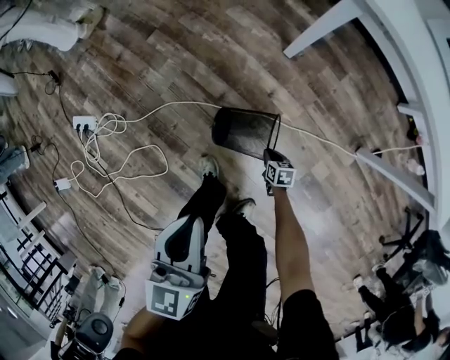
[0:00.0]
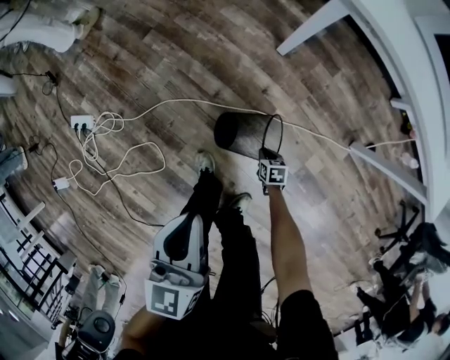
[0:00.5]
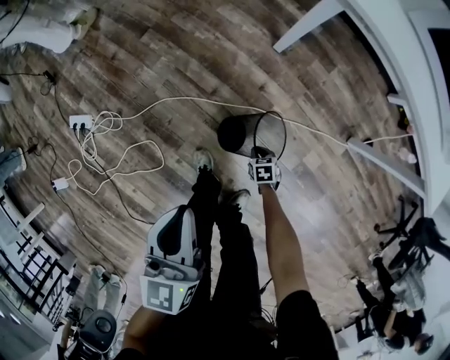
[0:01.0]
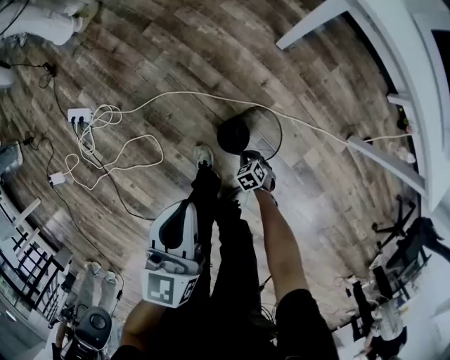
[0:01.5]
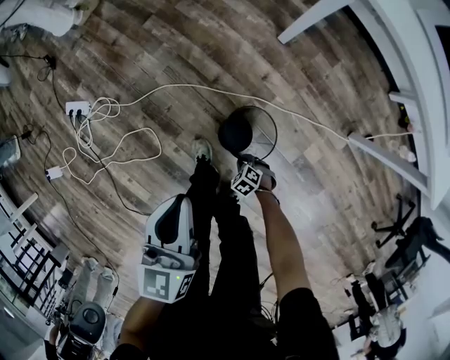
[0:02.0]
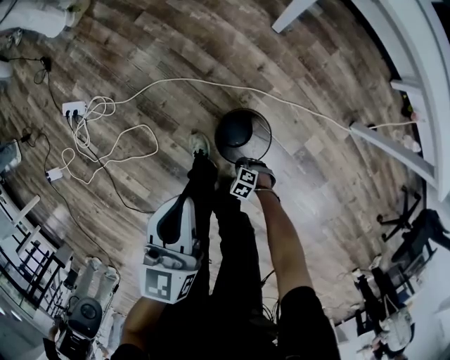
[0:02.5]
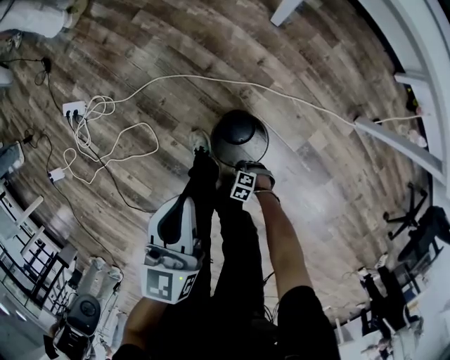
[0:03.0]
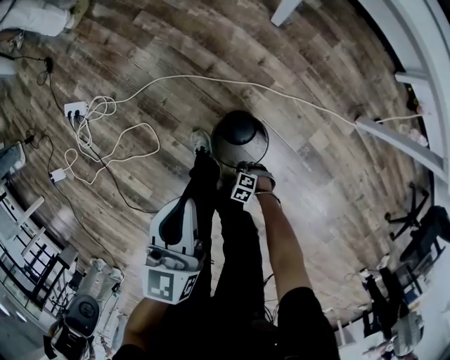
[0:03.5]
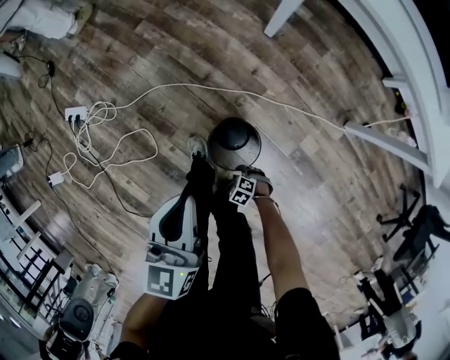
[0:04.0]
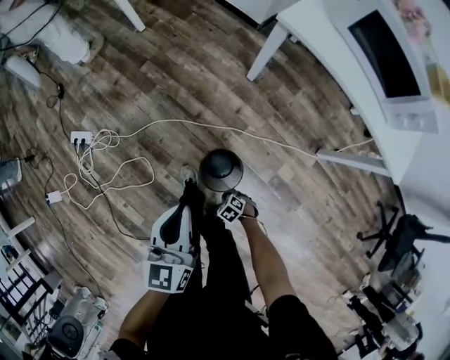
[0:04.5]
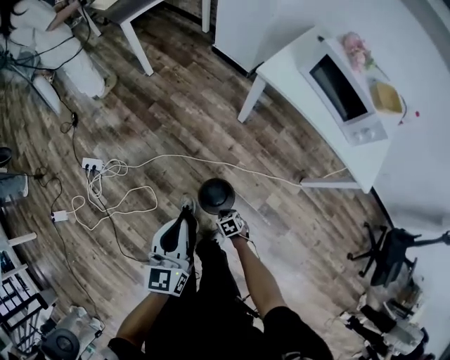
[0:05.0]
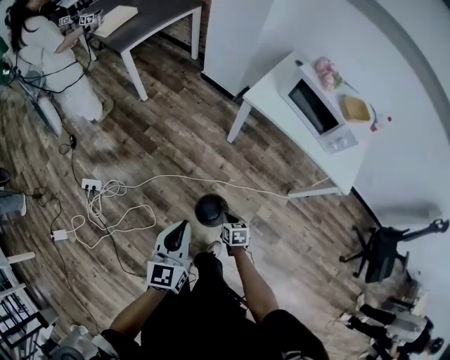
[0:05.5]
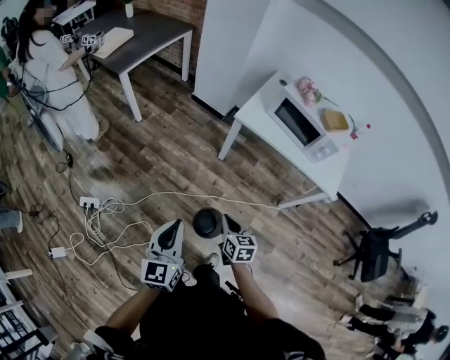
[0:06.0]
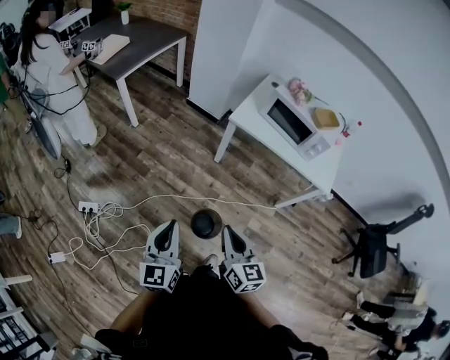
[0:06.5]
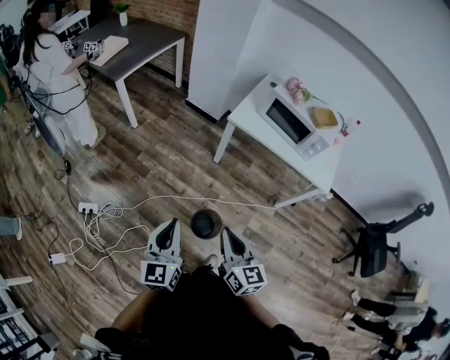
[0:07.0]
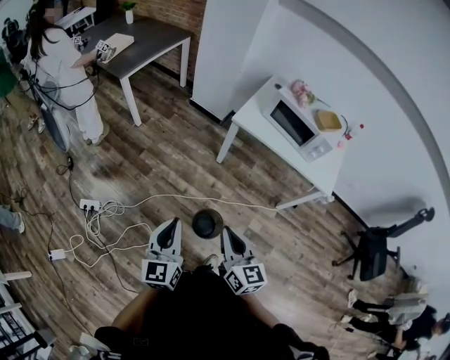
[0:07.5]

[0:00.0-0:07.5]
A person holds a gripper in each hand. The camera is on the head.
0:00.0 to 0:02.0: The right gripper moves some 15 cm, and rolls counterclockwise, seen from behind, by some 60 degrees.
0:02.0 to 0:04.0: The left gripper changes place by some 5 cm, while the right gripper shifts by some 10 cm.
0:04.0 to 0:05.5: The left gripper goes roughly 25 cm upward. The right gripper travels upward by approximately 40 cm, rotates around the line of its fingers by about 60 degrees, clockwise from behind, and closes up.
0:05.5 to 0:07.5: The left gripper is displaced upward and to the left by approximately 10 cm; the right gripper goes some 40 cm upward, and angles its fingers upward, by approximately 40 degrees.

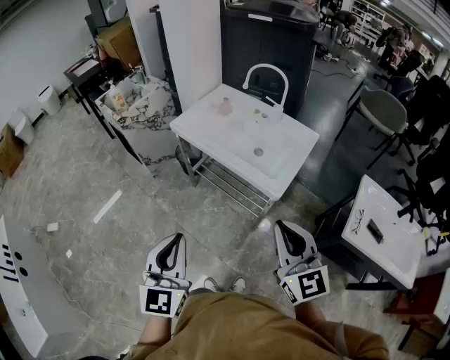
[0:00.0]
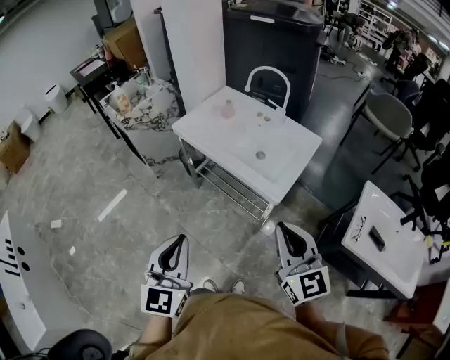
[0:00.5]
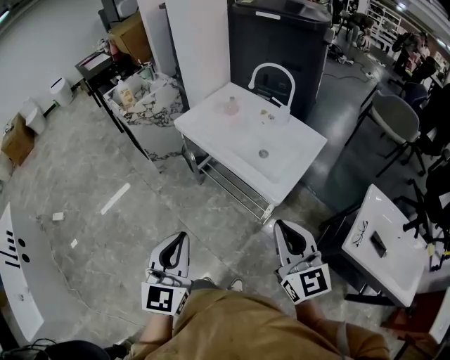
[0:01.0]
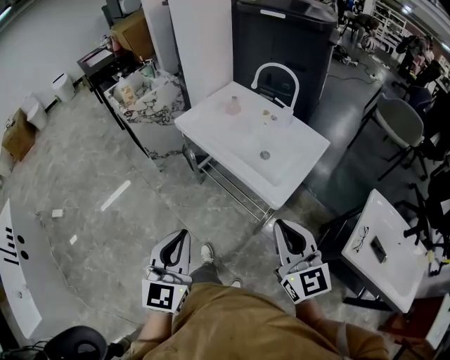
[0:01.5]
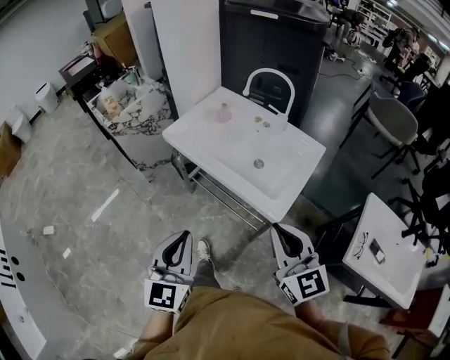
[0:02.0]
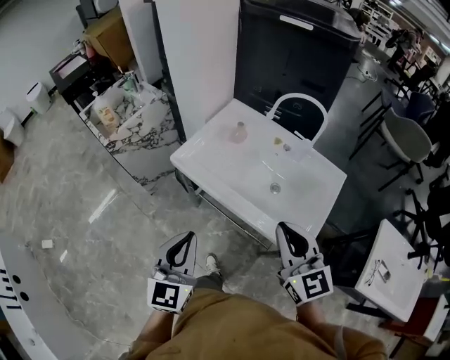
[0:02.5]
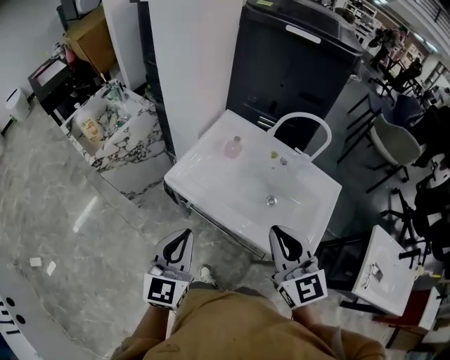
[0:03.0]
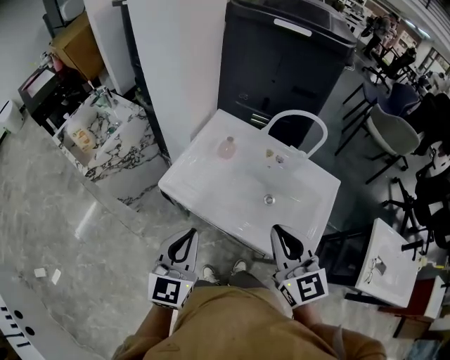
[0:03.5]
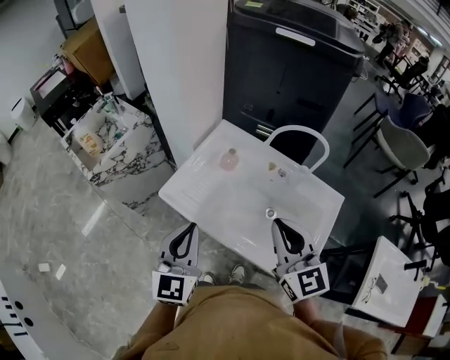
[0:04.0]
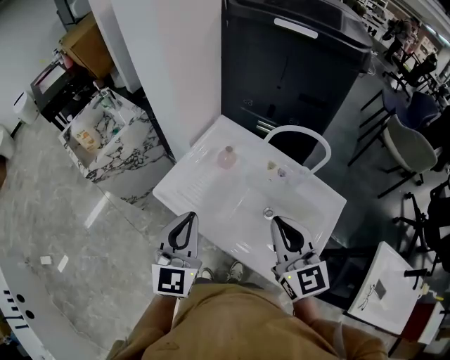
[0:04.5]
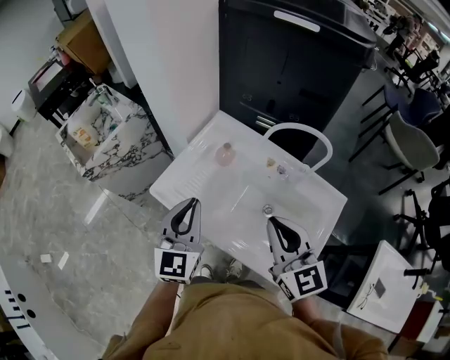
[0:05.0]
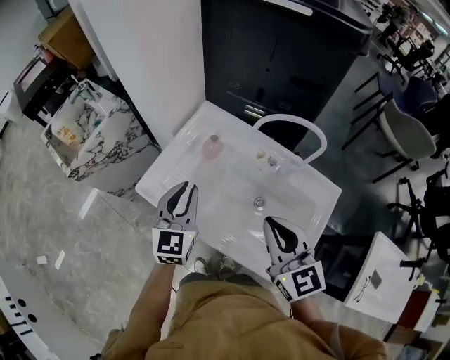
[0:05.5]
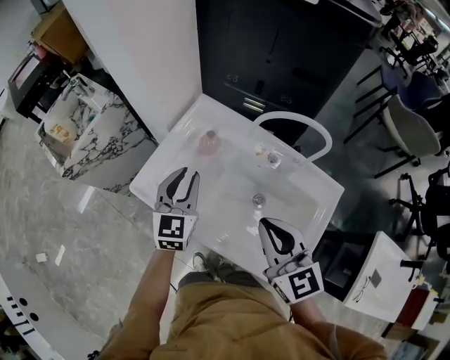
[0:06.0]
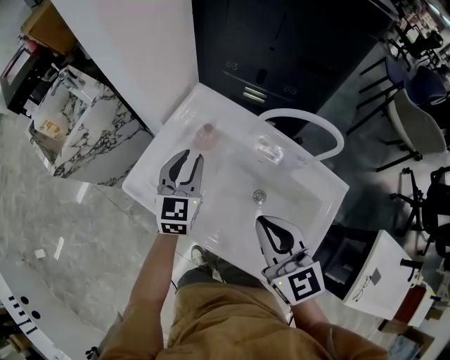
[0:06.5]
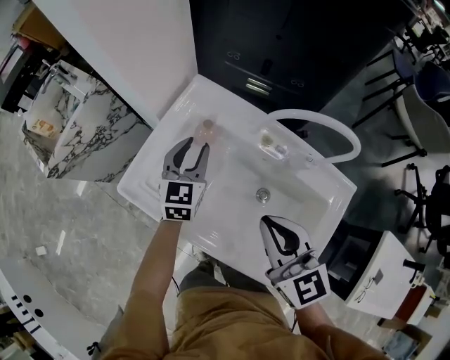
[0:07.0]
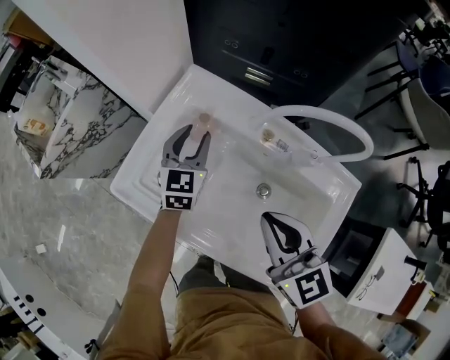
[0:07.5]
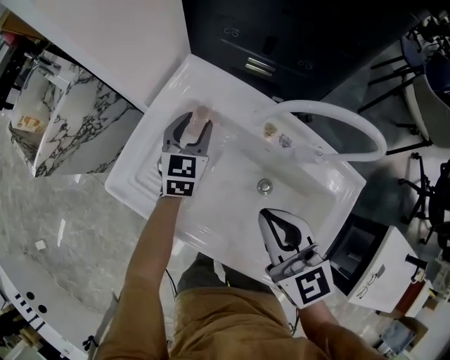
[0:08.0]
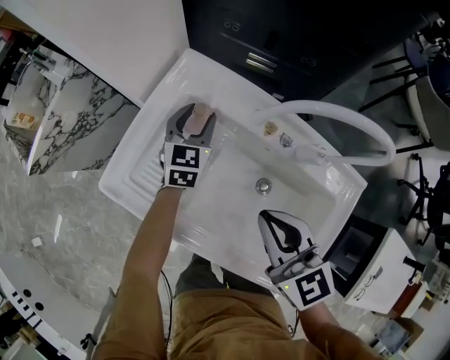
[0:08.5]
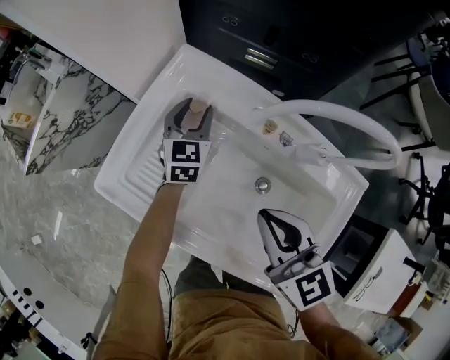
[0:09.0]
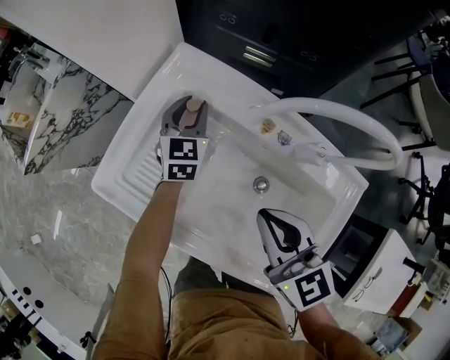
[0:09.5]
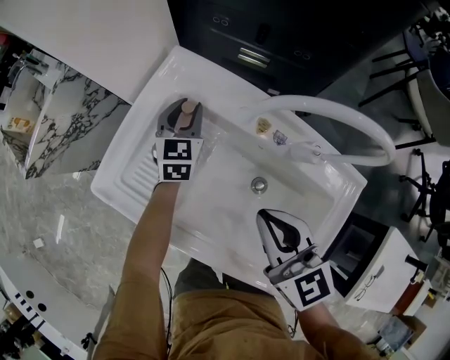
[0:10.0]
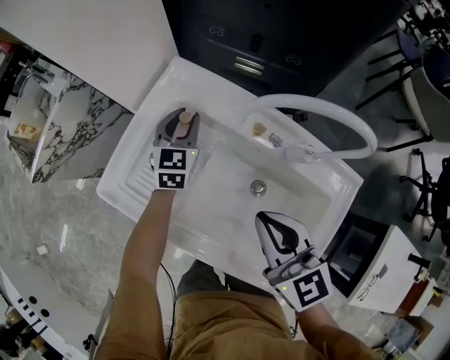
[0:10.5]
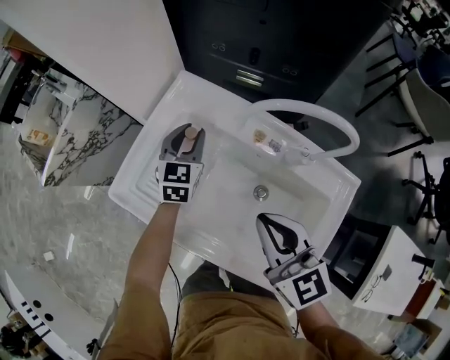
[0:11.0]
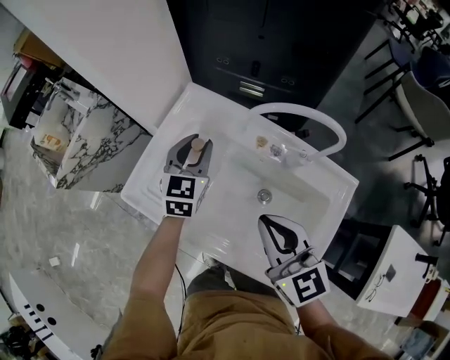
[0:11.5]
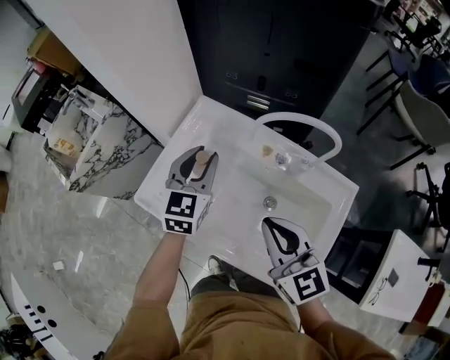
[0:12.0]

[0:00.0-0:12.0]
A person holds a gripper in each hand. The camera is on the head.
0:00.0 to 0:02.0: Both grippers travel together forward, about 10 cm.
0:02.0 to 0:04.0: Both grippers move forward, about 35 cm.
0:04.0 to 0:06.0: The left gripper heads forward, downward and to the right, covering approximately 25 cm, and opens its fingers; the right gripper moves downward and forward, approximately 10 cm.
0:06.0 to 0:08.0: The left gripper travels forward and downward by approximately 20 cm, and opens up. Meanwhile the right gripper is displaced downward and forward by roughly 10 cm.
0:08.0 to 0:10.0: The left gripper shifts by some 5 cm.
0:10.0 to 0:12.0: The right gripper moves upward, approximately 10 cm. The left gripper is displaced upward and backward by some 20 cm.

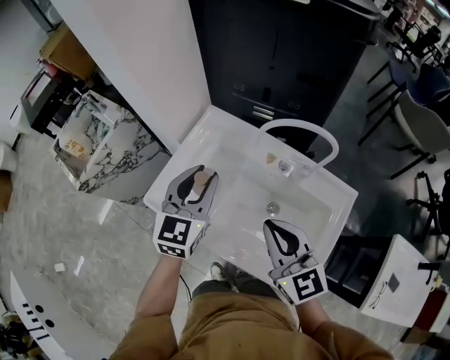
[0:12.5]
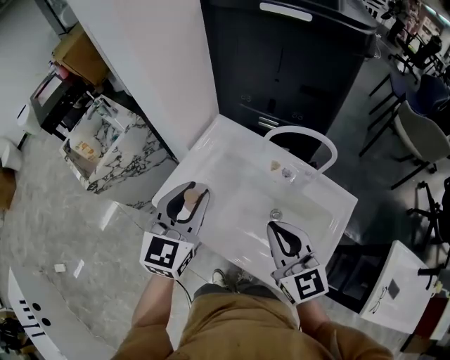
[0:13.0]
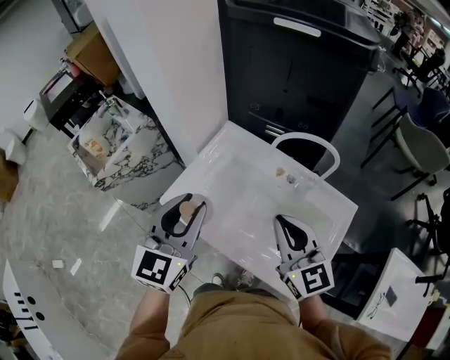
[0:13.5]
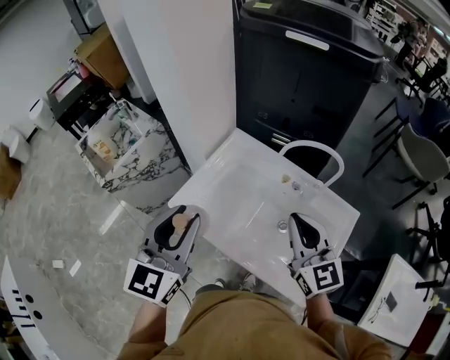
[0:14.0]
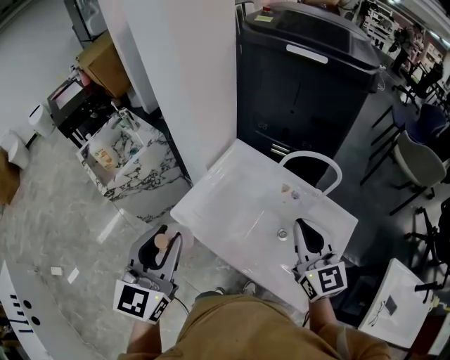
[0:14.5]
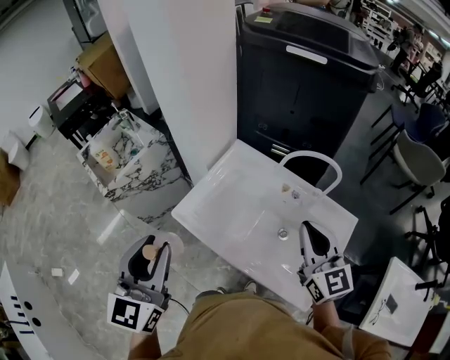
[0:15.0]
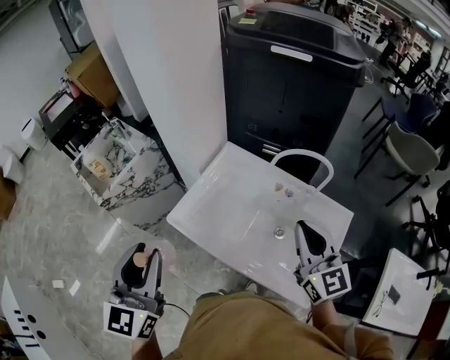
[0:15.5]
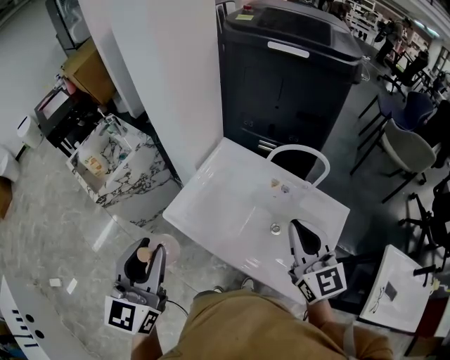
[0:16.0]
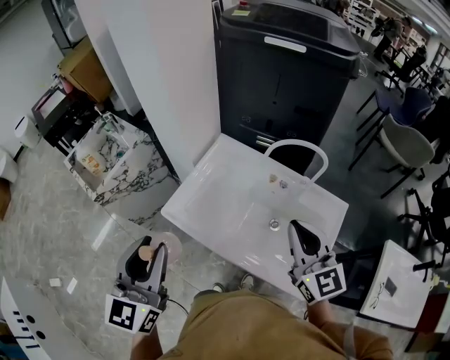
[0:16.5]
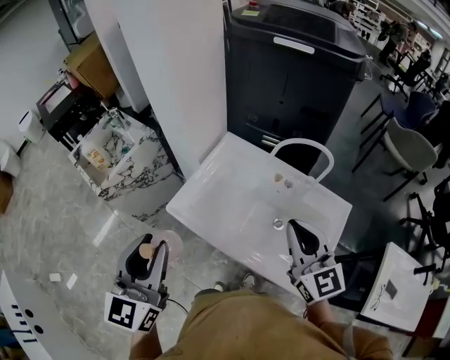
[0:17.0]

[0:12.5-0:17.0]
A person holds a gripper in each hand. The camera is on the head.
0:12.5 to 0:14.5: The left gripper is displaced backward, to the left and upward by approximately 25 cm; the right gripper heads upward, covering approximately 5 cm.
0:14.5 to 0:17.0: The right gripper changes place by approximately 5 cm.

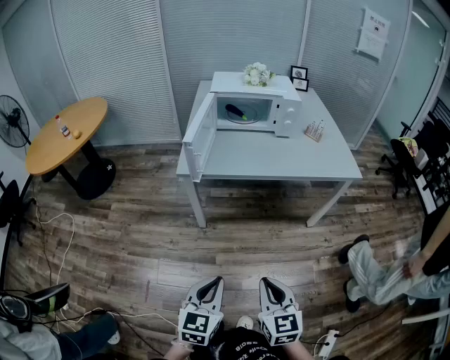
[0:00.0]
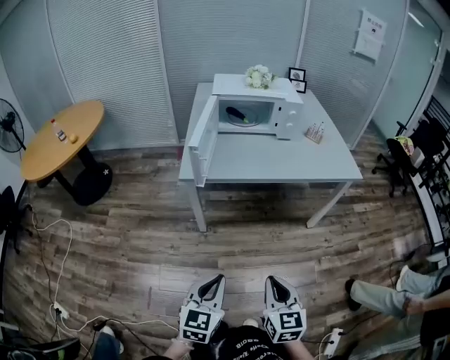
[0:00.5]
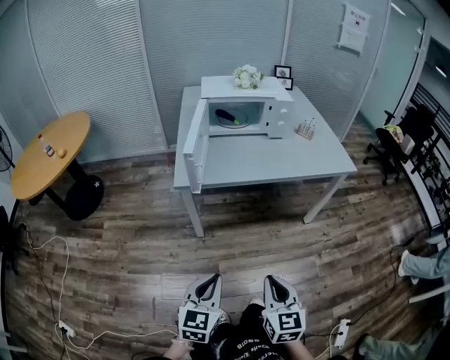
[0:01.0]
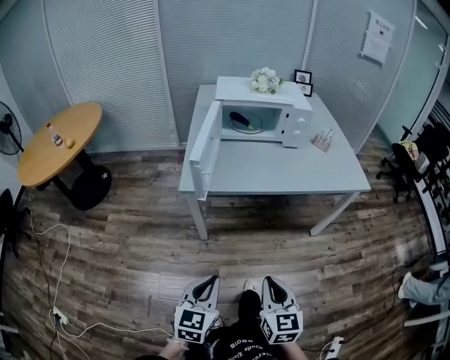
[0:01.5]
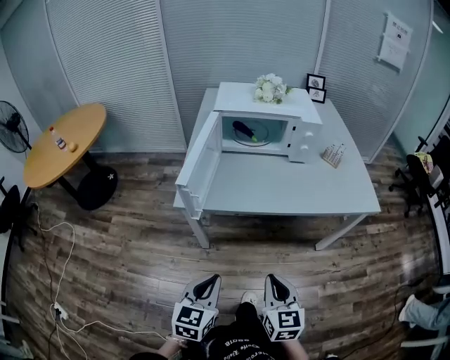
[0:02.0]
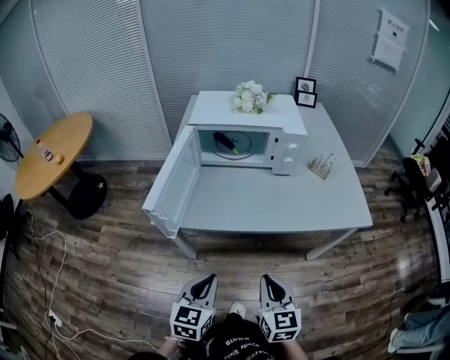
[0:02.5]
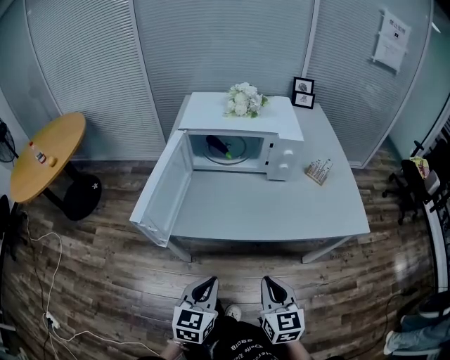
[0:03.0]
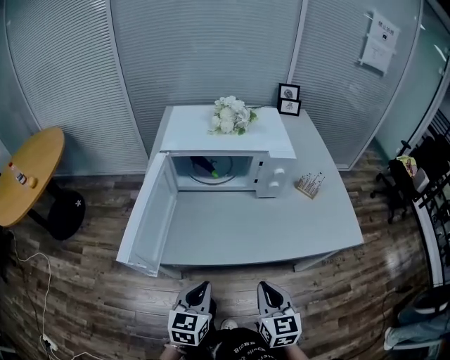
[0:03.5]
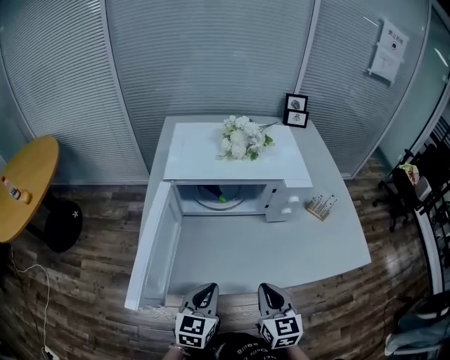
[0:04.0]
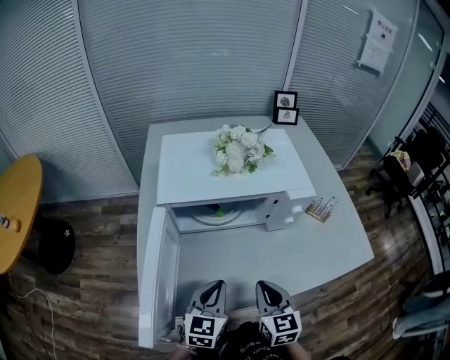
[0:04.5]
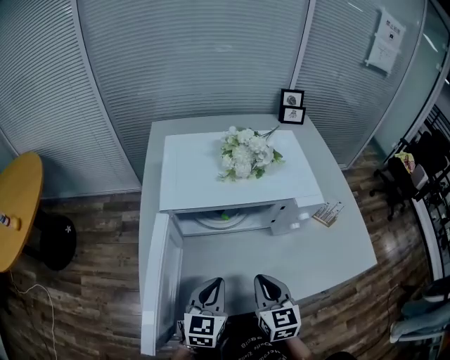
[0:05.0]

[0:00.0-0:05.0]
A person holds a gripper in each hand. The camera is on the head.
0:00.0 to 0:02.5: Both grippers travel together forward, approximately 25 cm.
0:02.5 to 0:05.0: The grippers both shift forward by some 30 cm.
